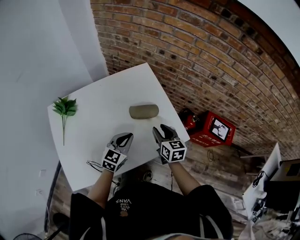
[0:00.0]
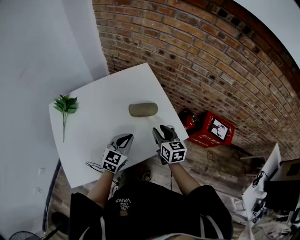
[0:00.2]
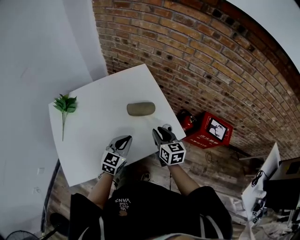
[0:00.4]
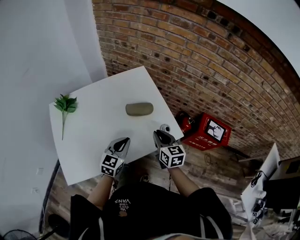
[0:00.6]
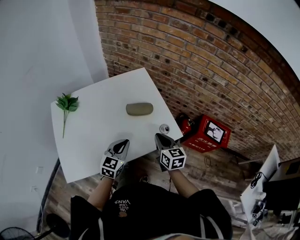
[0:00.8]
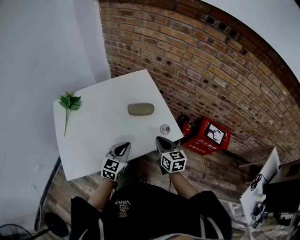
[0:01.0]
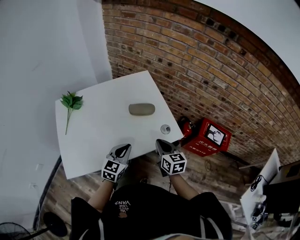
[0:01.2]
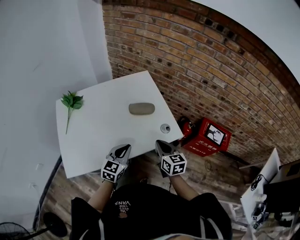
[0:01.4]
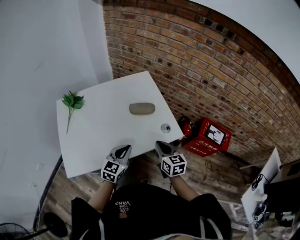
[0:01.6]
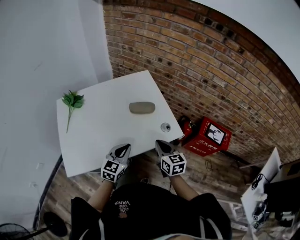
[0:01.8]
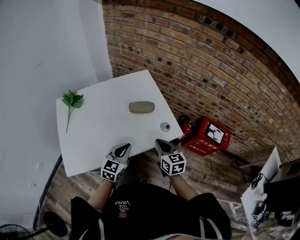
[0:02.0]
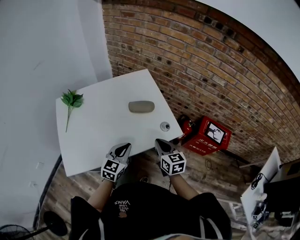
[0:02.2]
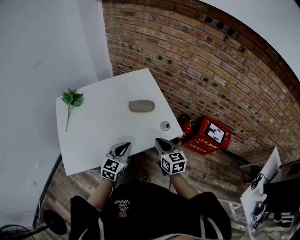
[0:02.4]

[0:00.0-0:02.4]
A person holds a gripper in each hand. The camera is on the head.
0.0 to 1.2 s: The grippers both shift backward by roughly 10 cm. The right gripper closes.
1.2 to 2.4 s: The grippers stay close to where they were, moving slightly.

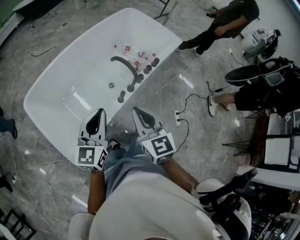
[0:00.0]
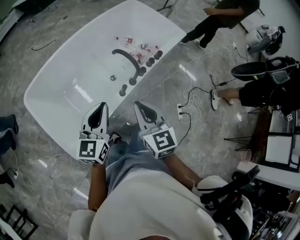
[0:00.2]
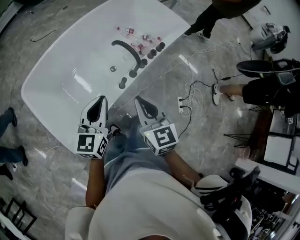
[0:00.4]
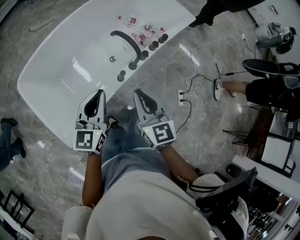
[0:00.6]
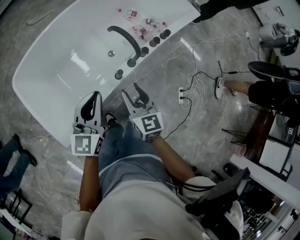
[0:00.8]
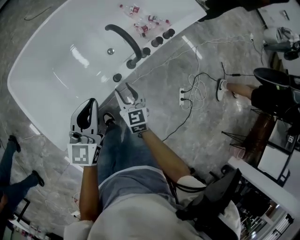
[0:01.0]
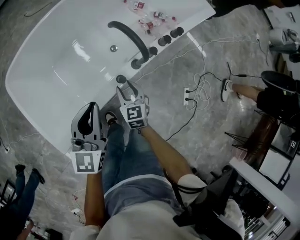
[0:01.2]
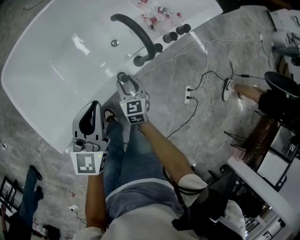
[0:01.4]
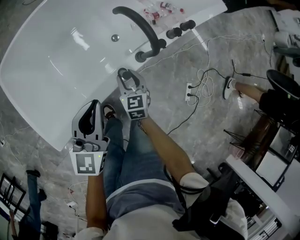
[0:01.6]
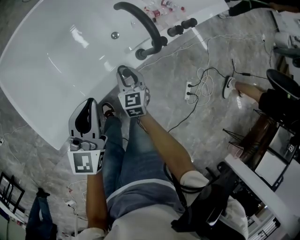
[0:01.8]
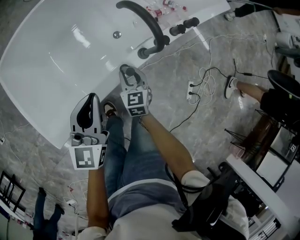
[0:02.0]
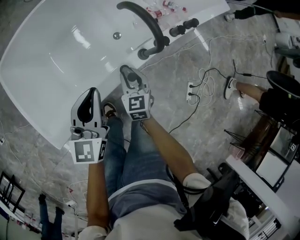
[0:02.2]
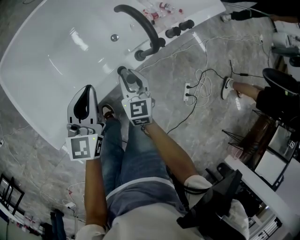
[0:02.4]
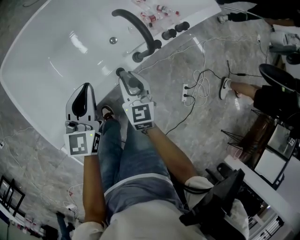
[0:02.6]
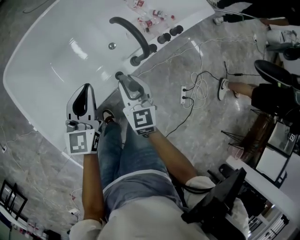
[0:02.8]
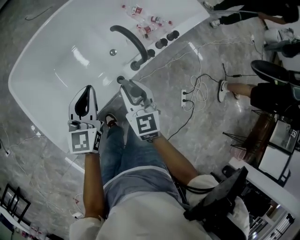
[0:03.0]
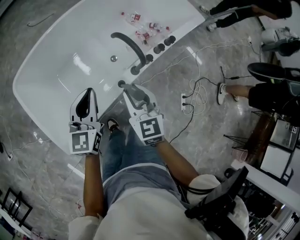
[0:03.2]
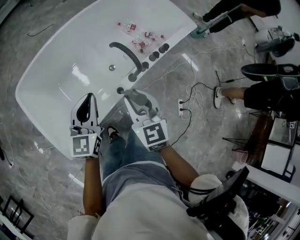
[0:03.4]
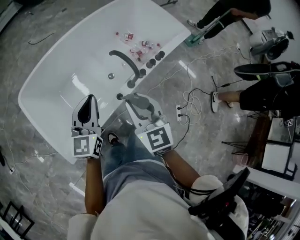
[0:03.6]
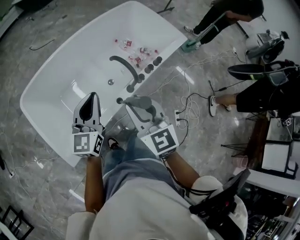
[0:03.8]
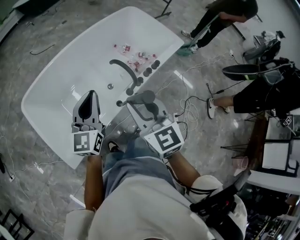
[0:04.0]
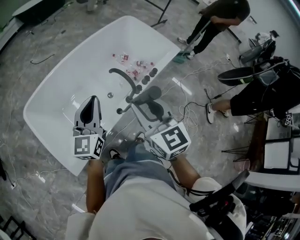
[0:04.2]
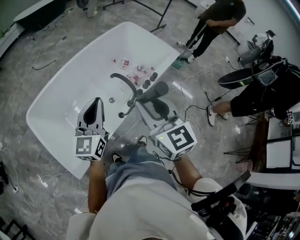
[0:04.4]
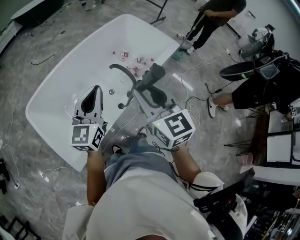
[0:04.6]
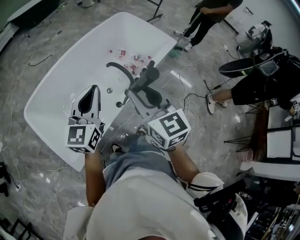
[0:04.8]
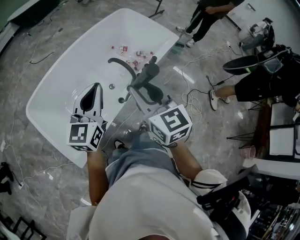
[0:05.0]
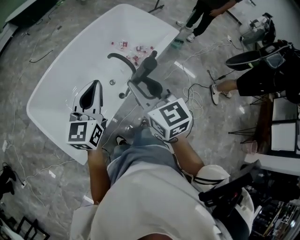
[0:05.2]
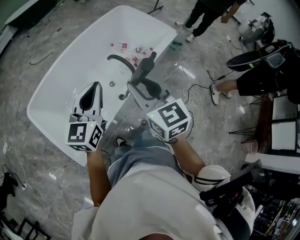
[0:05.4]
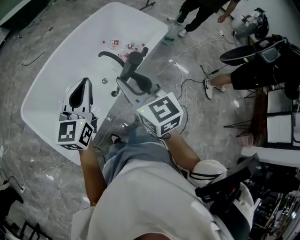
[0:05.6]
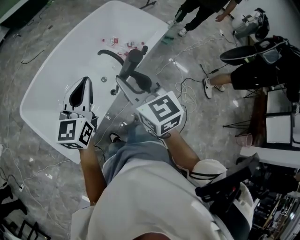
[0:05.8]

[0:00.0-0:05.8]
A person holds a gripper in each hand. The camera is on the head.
0.0 to 1.4 s: The two grippers go some 60 cm downward and forward. The right gripper opens up.
1.4 to 2.8 s: The right gripper moves upward, some 20 cm, while the left gripper changes place by about 5 cm.
2.8 to 4.4 s: The left gripper moves upward and backward, approximately 50 cm. Meanwhile the right gripper travels upward by some 60 cm.
4.4 to 5.8 s: The left gripper shifts by approximately 5 cm. The right gripper moves downward, approximately 5 cm.

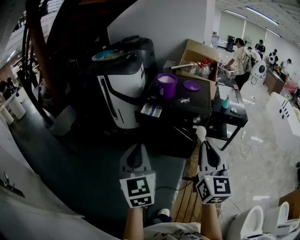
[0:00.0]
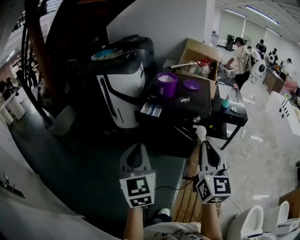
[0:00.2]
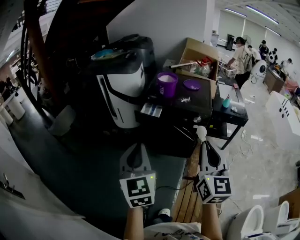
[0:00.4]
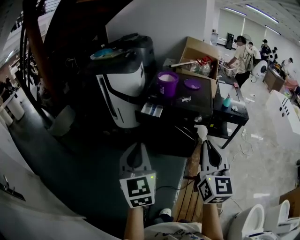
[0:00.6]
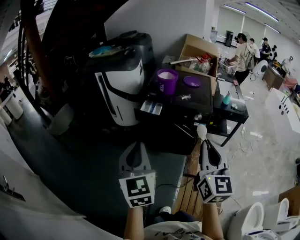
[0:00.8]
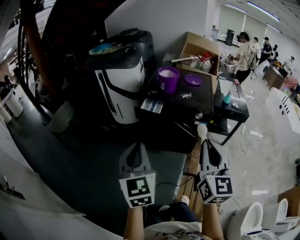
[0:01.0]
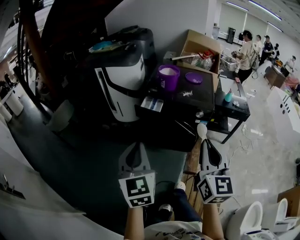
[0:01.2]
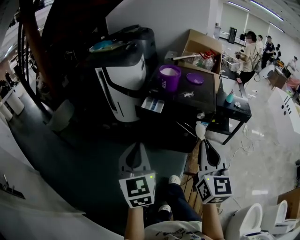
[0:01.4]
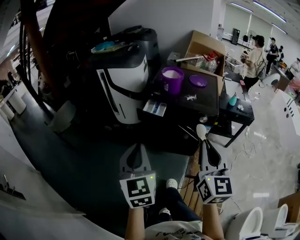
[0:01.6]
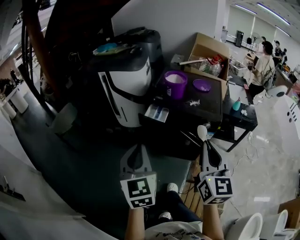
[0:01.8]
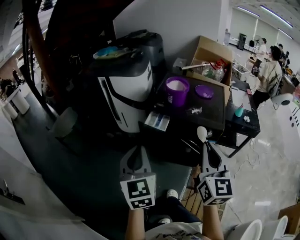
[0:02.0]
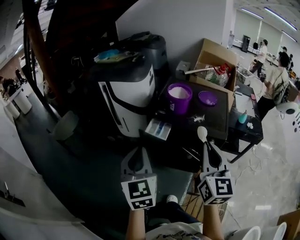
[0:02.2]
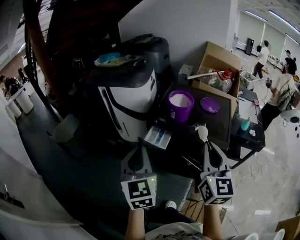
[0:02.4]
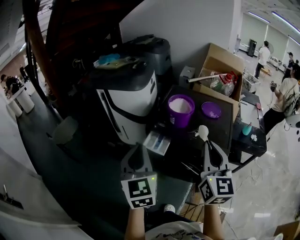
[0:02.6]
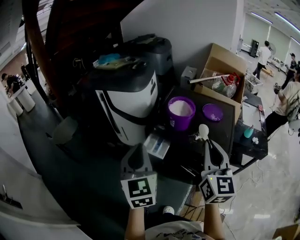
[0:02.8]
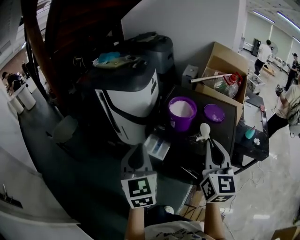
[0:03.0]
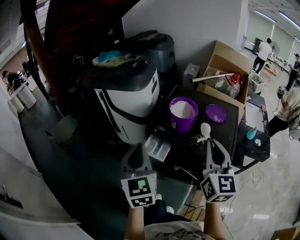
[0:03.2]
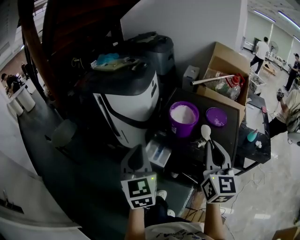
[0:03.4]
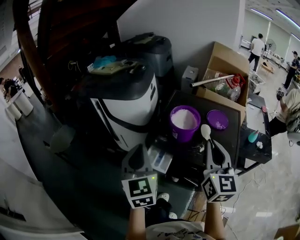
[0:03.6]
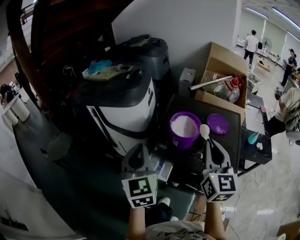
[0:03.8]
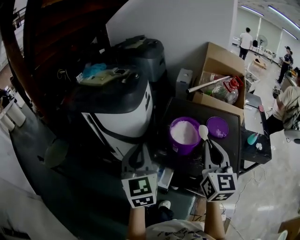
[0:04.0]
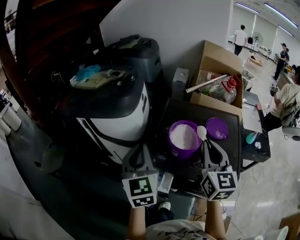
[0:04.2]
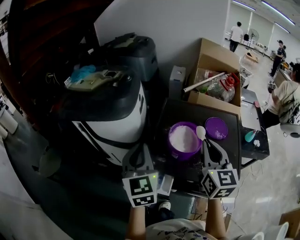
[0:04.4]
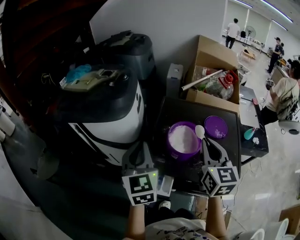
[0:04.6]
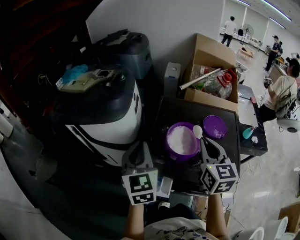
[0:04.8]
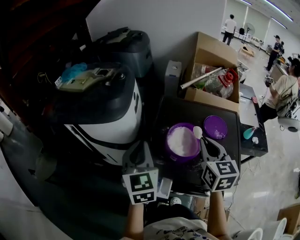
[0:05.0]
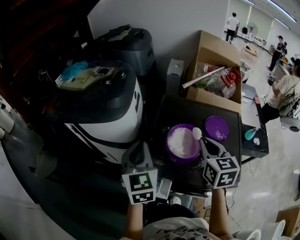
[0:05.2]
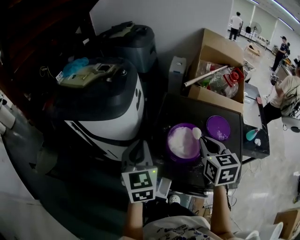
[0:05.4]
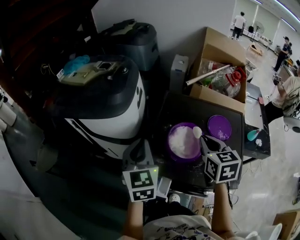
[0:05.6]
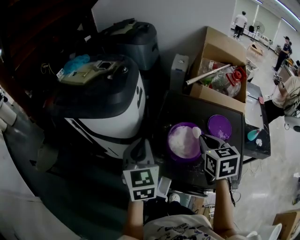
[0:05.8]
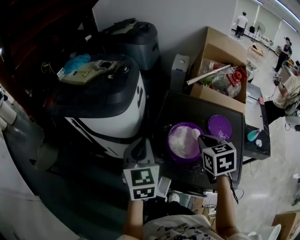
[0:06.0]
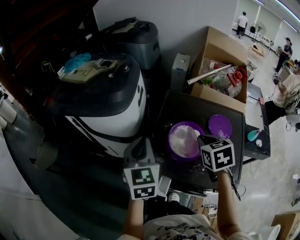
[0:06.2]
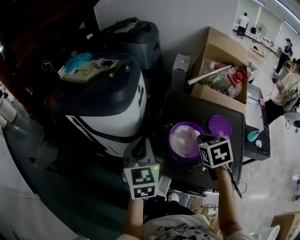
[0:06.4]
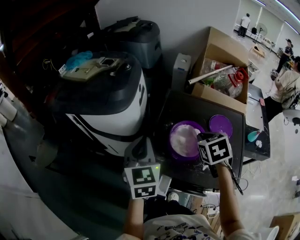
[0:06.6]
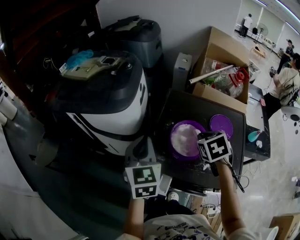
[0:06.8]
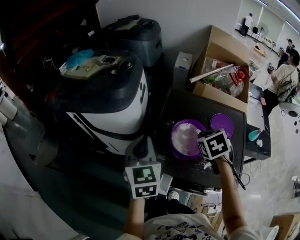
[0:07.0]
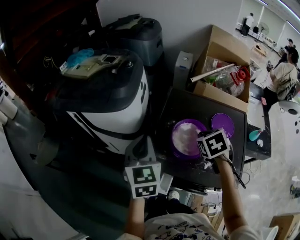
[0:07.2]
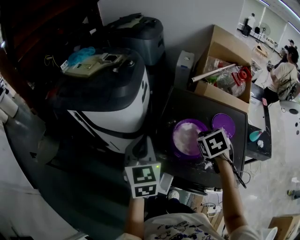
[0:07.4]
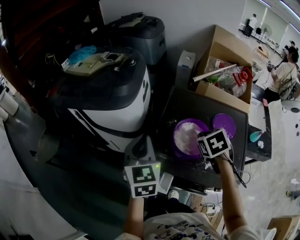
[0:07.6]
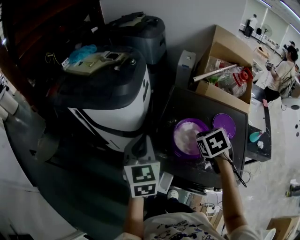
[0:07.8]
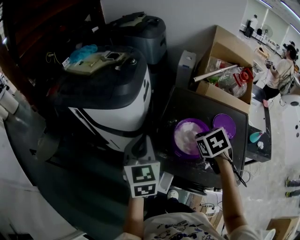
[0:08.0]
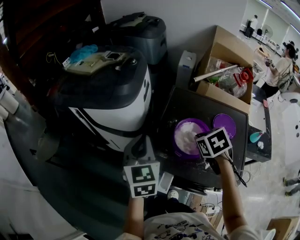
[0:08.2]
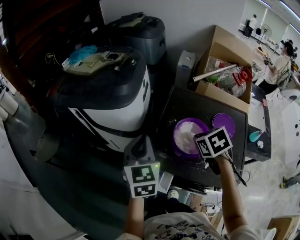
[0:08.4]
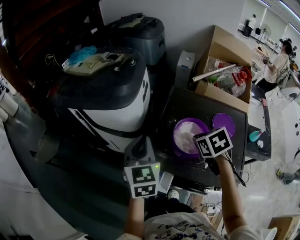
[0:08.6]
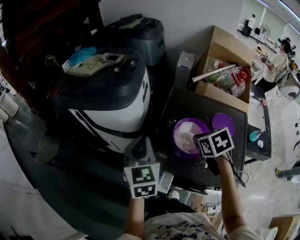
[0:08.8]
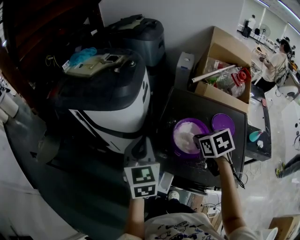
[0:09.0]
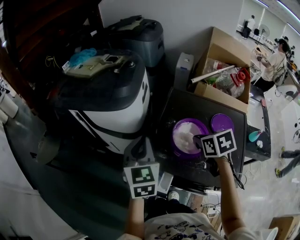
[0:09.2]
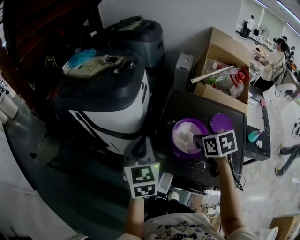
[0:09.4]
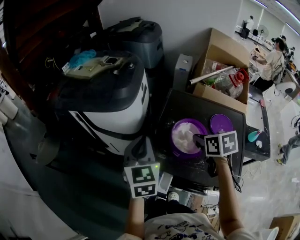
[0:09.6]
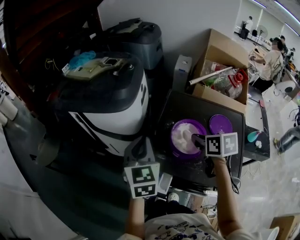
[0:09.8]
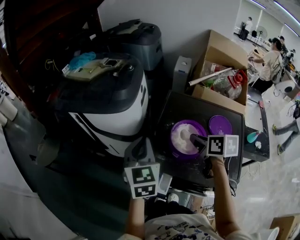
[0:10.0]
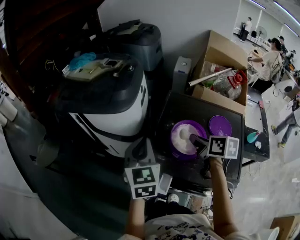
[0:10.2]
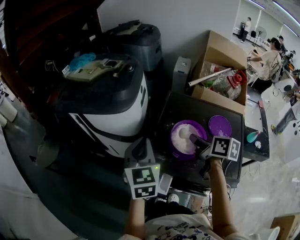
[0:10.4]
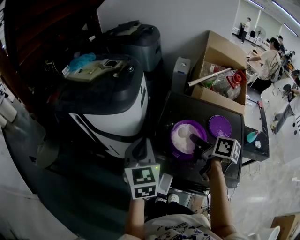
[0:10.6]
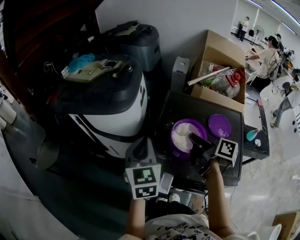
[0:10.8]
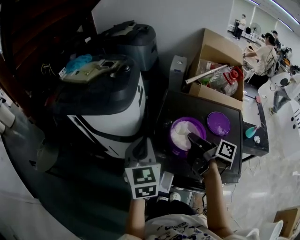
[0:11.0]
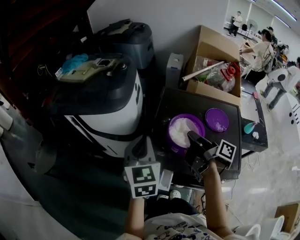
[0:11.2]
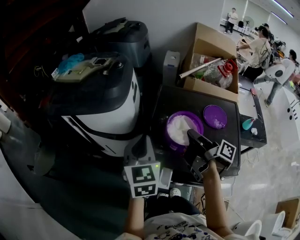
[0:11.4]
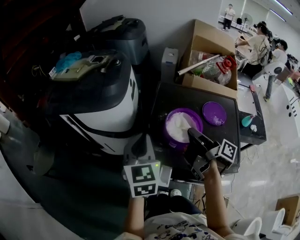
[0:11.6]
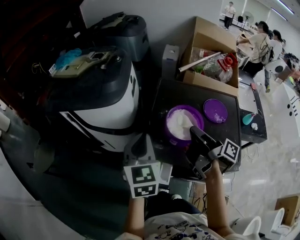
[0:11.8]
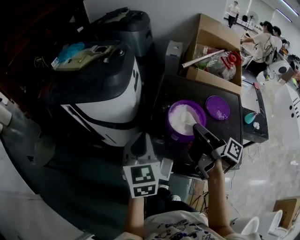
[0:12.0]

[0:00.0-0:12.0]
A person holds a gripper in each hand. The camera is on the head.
0.0 to 1.6 s: Both grippers move forward, some 5 cm.
1.6 to 3.0 s: The two grippers go approximately 30 cm forward.
3.0 to 4.4 s: The two grippers go some 25 cm forward.
4.4 to 6.0 s: The left gripper goes roughly 5 cm forward. Meanwhile the right gripper moves downward and forward, about 10 cm, and tips its fingers downward by about 30 degrees.
6.0 to 7.6 s: The right gripper heads downward, covering some 5 cm, and turns by about 20 degrees.
7.6 to 9.0 s: There are only small adjustments of the grippers.
9.0 to 10.4 s: The right gripper rotates approximately 50 degrees.
10.4 to 12.0 s: The right gripper heads backward, covering some 5 cm, and rotates approximately 50 degrees.

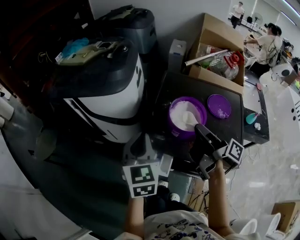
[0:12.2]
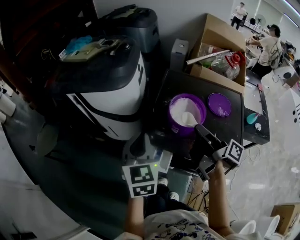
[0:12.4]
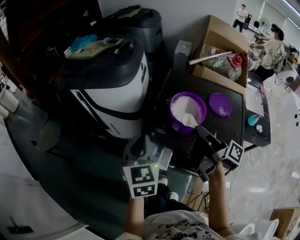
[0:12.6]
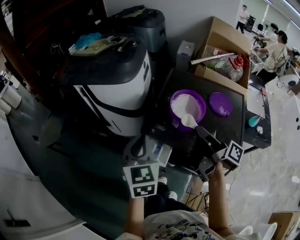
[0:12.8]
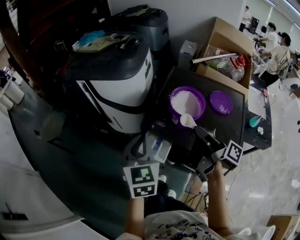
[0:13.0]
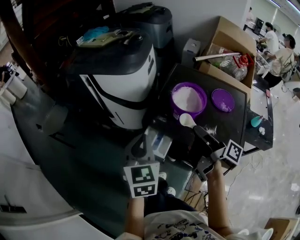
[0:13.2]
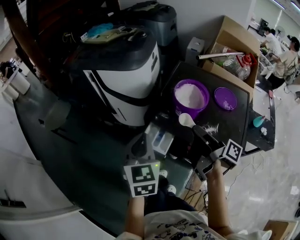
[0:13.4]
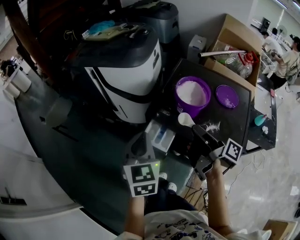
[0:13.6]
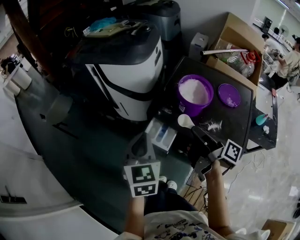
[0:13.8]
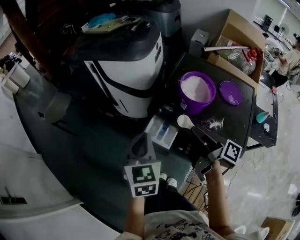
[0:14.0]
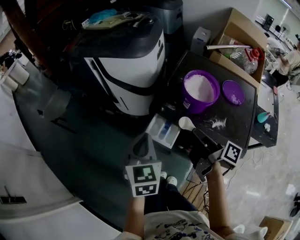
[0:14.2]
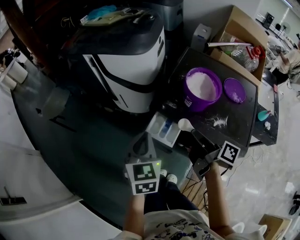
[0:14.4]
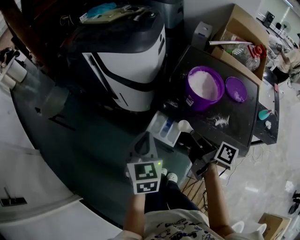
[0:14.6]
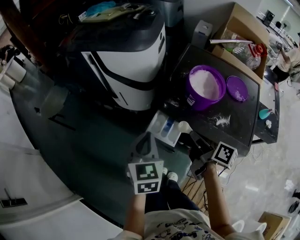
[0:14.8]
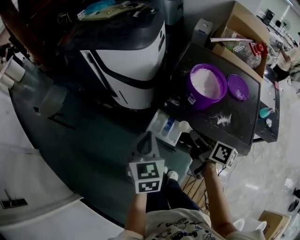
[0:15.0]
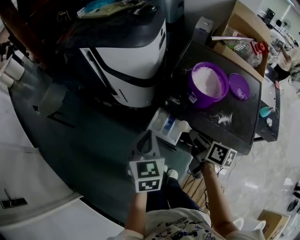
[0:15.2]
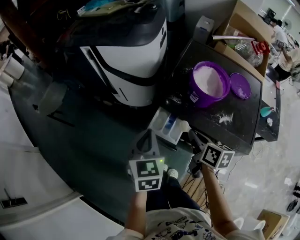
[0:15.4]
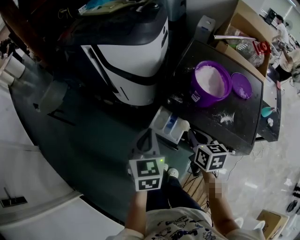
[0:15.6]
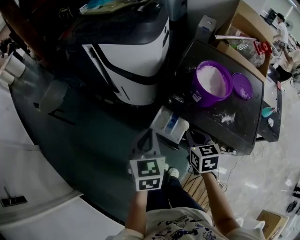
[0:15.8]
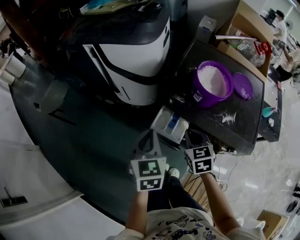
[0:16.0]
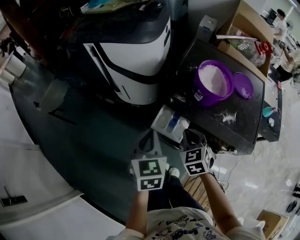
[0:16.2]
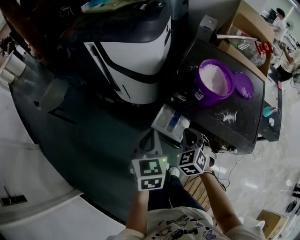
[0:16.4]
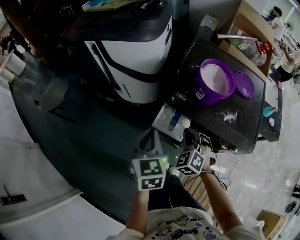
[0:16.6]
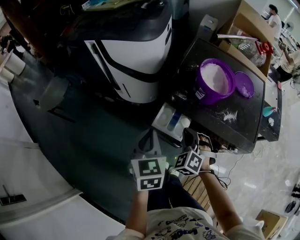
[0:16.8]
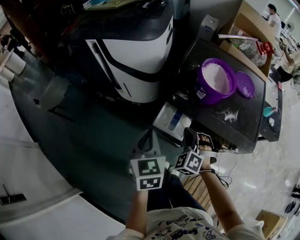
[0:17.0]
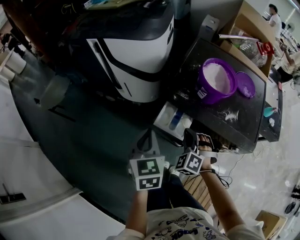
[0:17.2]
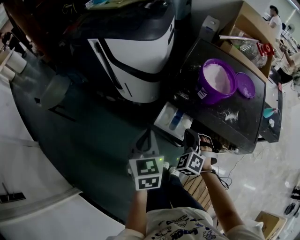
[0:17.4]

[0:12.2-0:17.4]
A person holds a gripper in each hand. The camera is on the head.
12.2 to 14.0 s: The left gripper heads backward, covering approximately 15 cm, while the right gripper is displaced backward and to the left by roughly 10 cm.
14.0 to 15.6 s: The right gripper travels downward by some 10 cm, and rolls counterclockwise, seen from behind, by about 60 degrees; the left gripper travels downward by approximately 5 cm.
15.6 to 17.4 s: The right gripper shifts by roughly 5 cm, and rotates around the line of its fingers by about 70 degrees, counterclockwise from behind.
